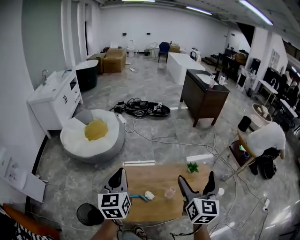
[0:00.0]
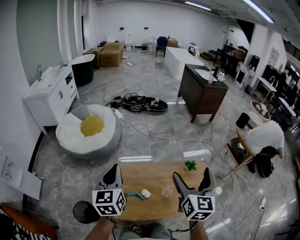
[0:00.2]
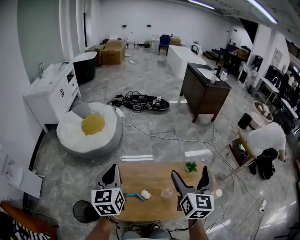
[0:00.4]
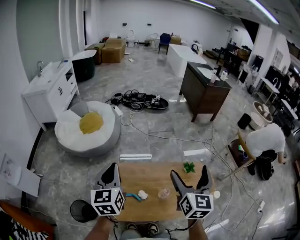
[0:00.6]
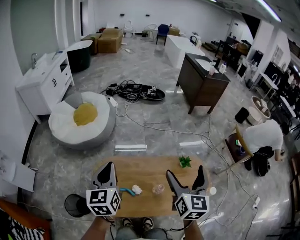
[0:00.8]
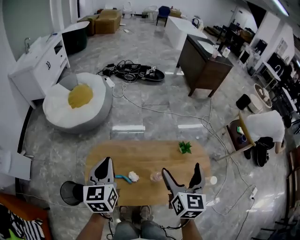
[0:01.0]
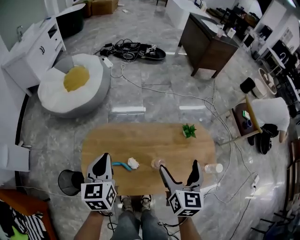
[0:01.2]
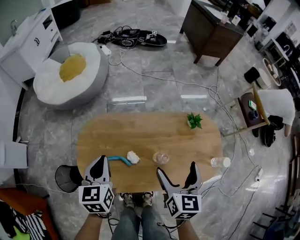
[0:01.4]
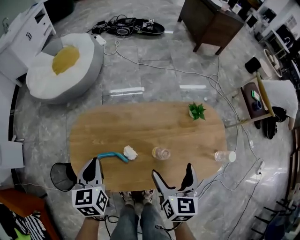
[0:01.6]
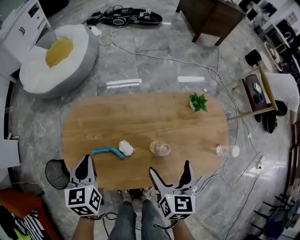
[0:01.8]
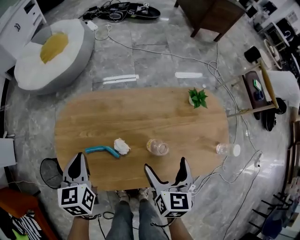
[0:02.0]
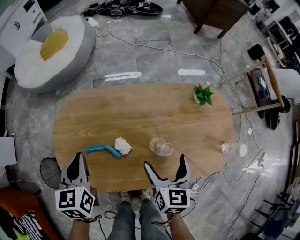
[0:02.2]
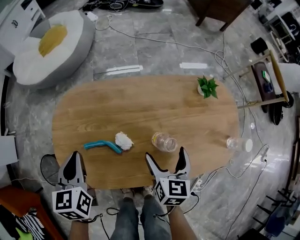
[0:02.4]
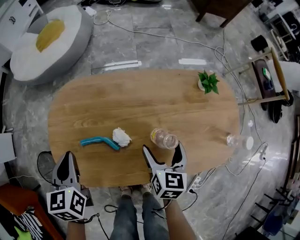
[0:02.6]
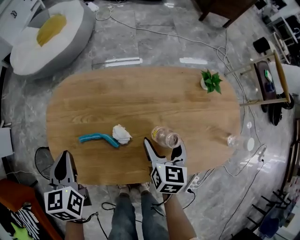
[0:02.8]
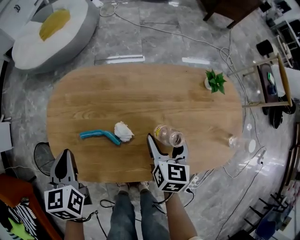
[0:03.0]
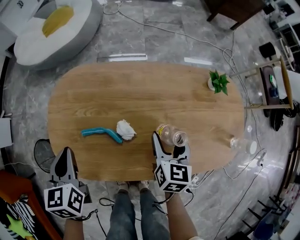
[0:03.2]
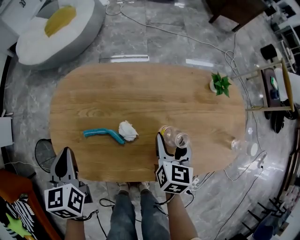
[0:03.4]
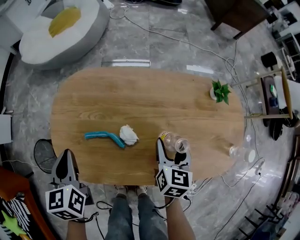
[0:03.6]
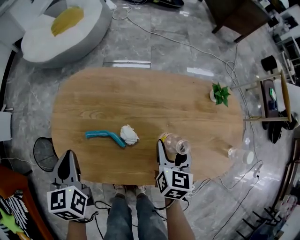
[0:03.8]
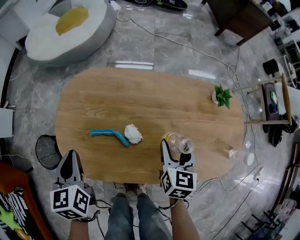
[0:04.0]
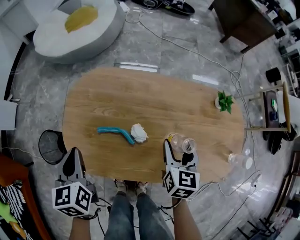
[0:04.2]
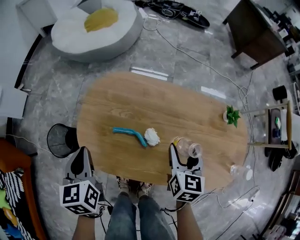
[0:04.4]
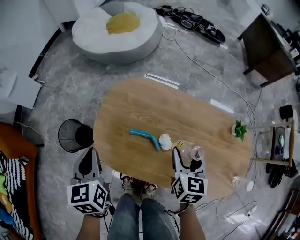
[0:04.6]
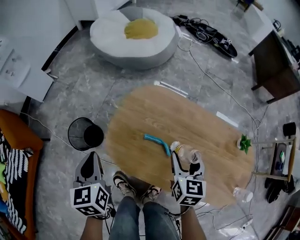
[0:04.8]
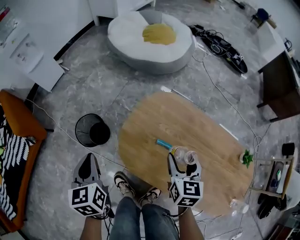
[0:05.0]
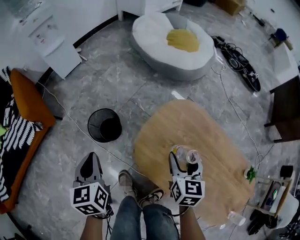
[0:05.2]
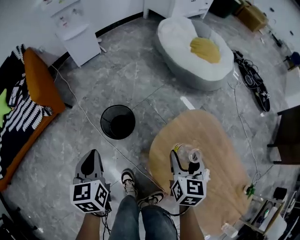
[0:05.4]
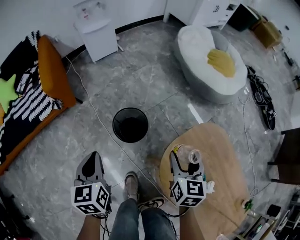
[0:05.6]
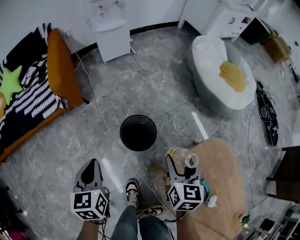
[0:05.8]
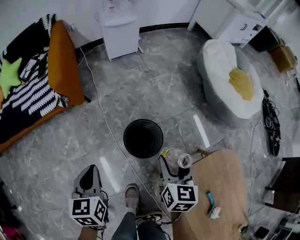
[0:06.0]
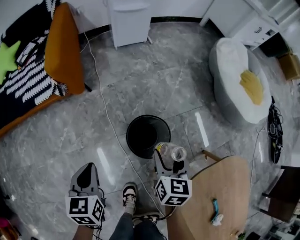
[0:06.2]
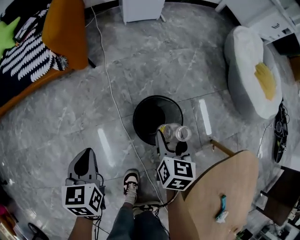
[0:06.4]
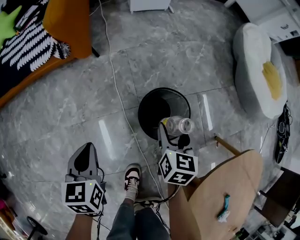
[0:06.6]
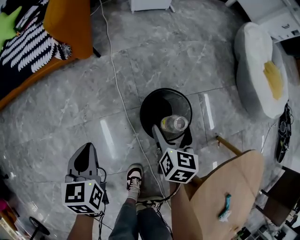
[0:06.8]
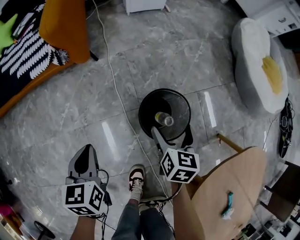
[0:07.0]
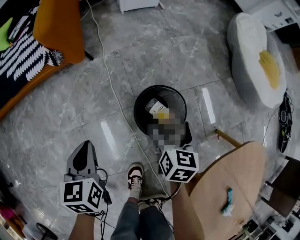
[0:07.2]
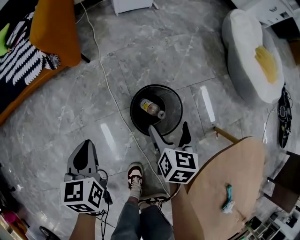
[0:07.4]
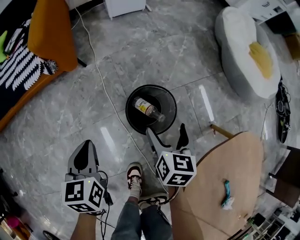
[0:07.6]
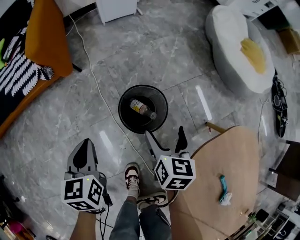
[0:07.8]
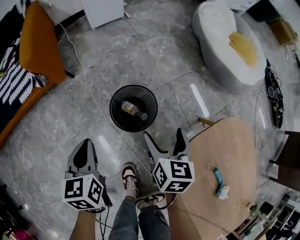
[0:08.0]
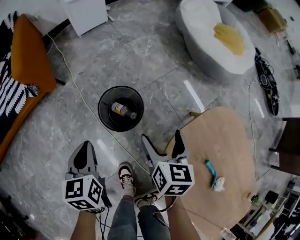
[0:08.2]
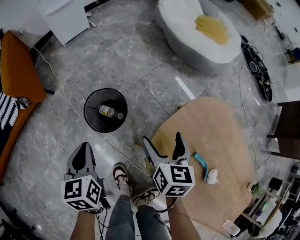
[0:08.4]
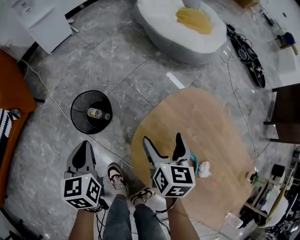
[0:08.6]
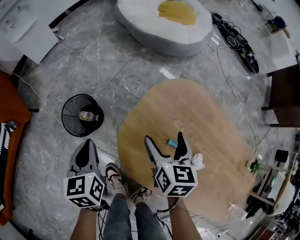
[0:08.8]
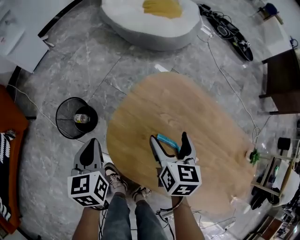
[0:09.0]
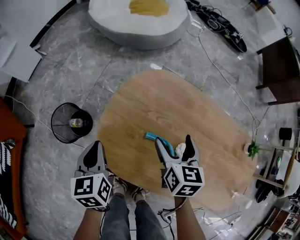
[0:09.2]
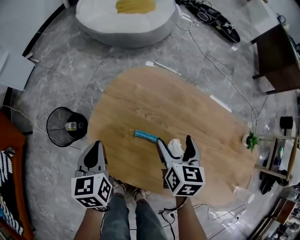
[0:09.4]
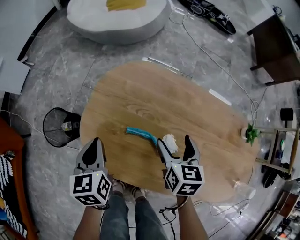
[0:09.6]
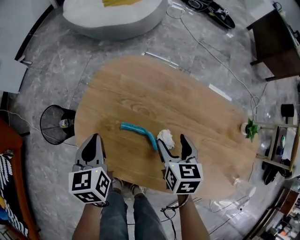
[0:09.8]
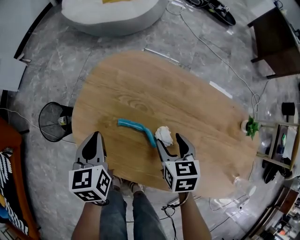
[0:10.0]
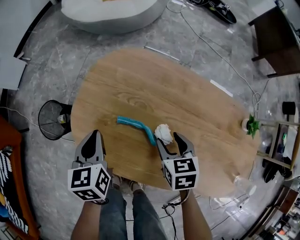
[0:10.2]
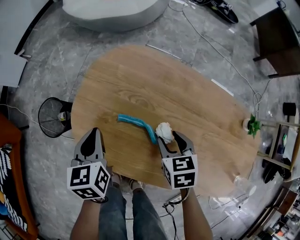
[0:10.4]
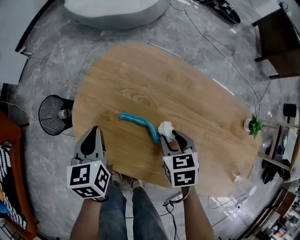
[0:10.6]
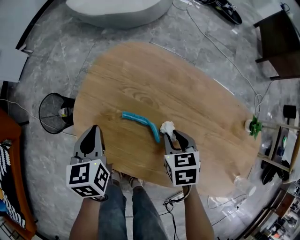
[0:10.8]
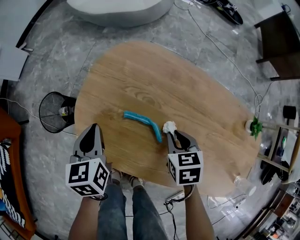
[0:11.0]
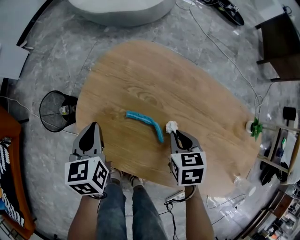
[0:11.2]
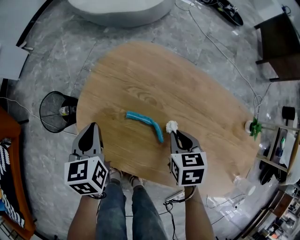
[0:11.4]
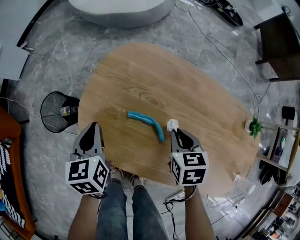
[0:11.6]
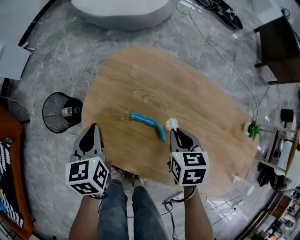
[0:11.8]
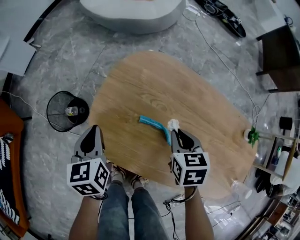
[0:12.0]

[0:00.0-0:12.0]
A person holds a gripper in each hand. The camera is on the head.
0:00.0 to 0:01.6: Both grippers move downward, about 35 cm. The left gripper swivels approximately 30 degrees; the right gripper changes its angle by about 30 degrees.
0:01.6 to 0:03.0: The left gripper travels downward and to the left by about 10 cm. Meanwhile the right gripper is displaced downward by roughly 20 cm.
0:03.0 to 0:04.4: The left gripper shifts by some 10 cm. Meanwhile the right gripper is displaced upward by some 5 cm.
0:04.4 to 0:06.0: Both grippers are carried roughly 50 cm. The left gripper swivels some 50 degrees. The right gripper changes its angle by approximately 60 degrees.
0:06.0 to 0:07.6: Both grippers move downward, some 15 cm. The right gripper opens up.
0:07.6 to 0:09.0: The right gripper changes place by some 40 cm, and swivels some 30 degrees, while the left gripper moves about 35 cm, and swivels roughly 40 degrees.
0:09.0 to 0:10.4: The left gripper heads to the right, covering some 15 cm, while the right gripper is displaced to the right, backward and downward by about 20 cm, rotates some 20 degrees, and closes up.
0:10.4 to 0:12.0: The right gripper ends up approximately 5 cm from where it was; the left gripper is displaced to the left by some 5 cm.

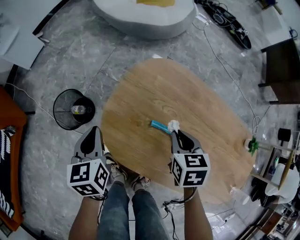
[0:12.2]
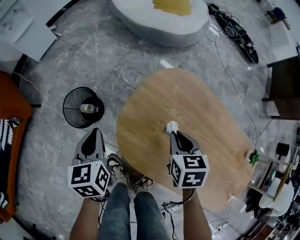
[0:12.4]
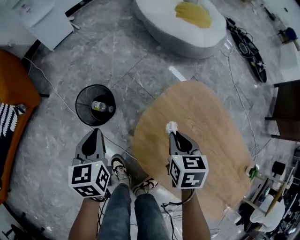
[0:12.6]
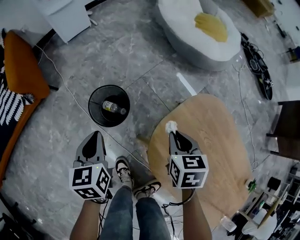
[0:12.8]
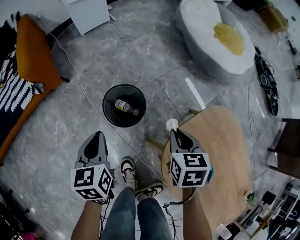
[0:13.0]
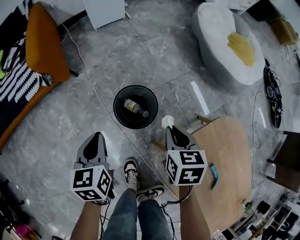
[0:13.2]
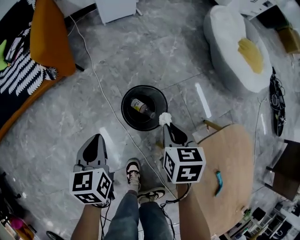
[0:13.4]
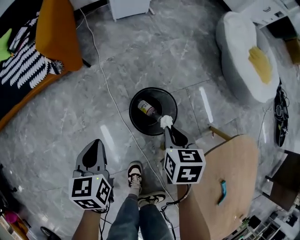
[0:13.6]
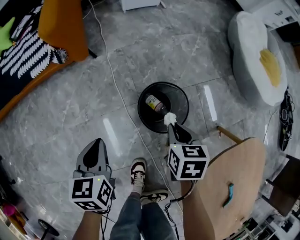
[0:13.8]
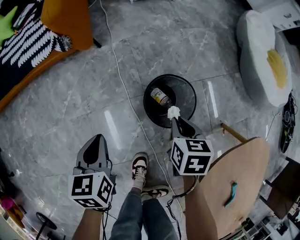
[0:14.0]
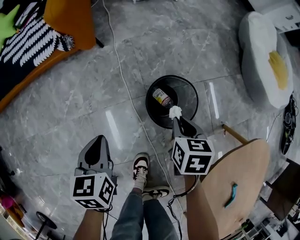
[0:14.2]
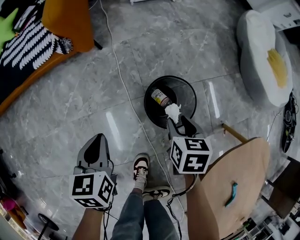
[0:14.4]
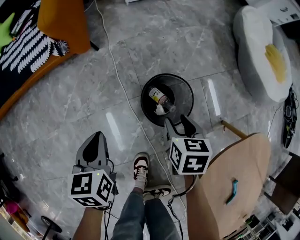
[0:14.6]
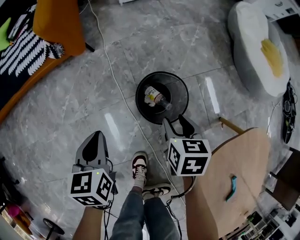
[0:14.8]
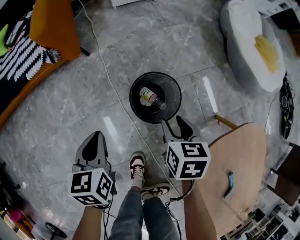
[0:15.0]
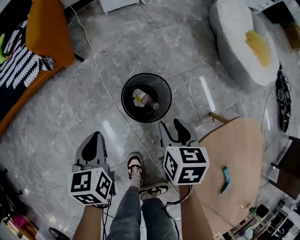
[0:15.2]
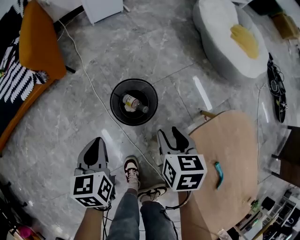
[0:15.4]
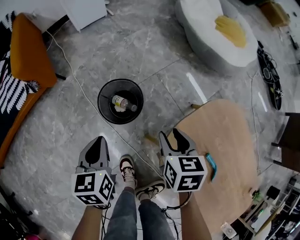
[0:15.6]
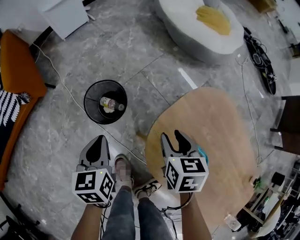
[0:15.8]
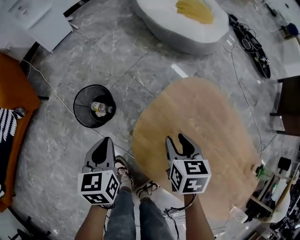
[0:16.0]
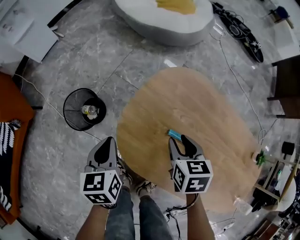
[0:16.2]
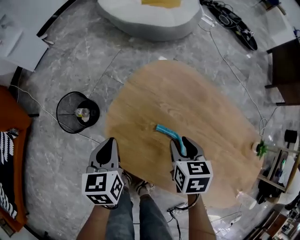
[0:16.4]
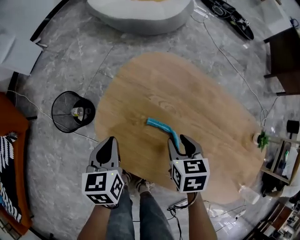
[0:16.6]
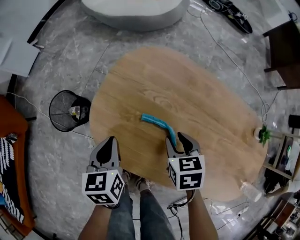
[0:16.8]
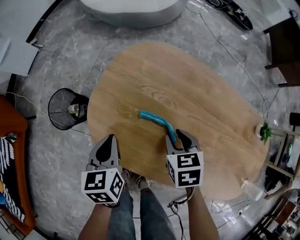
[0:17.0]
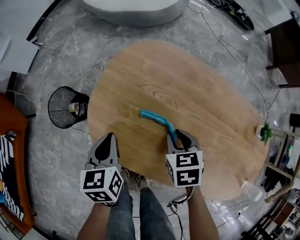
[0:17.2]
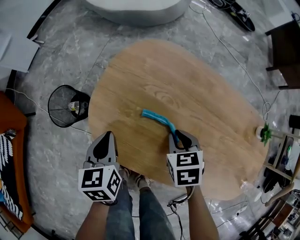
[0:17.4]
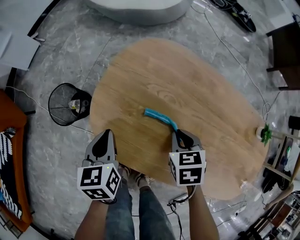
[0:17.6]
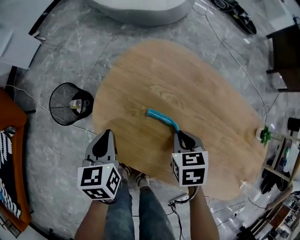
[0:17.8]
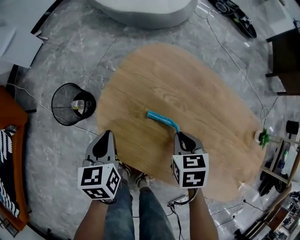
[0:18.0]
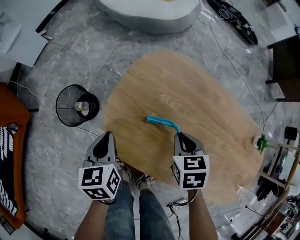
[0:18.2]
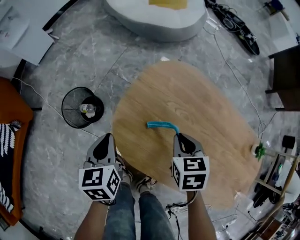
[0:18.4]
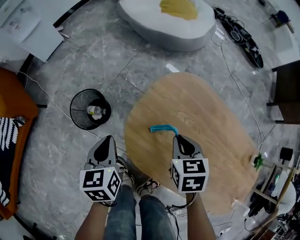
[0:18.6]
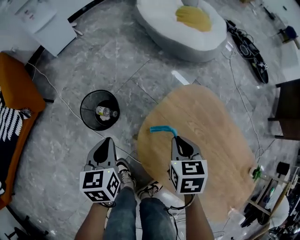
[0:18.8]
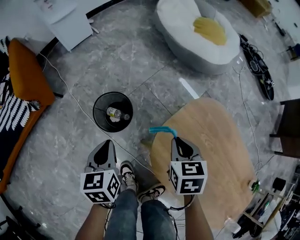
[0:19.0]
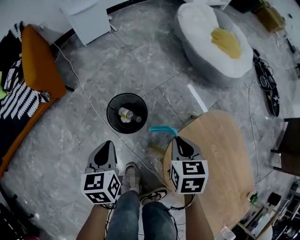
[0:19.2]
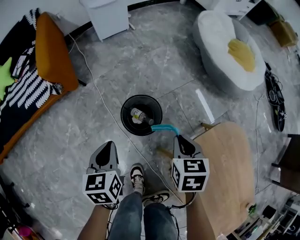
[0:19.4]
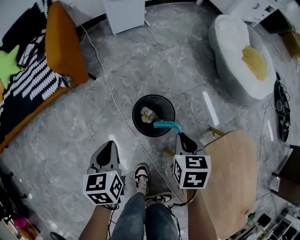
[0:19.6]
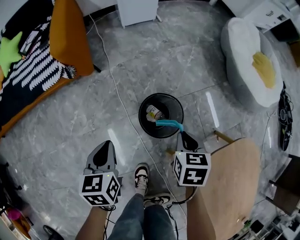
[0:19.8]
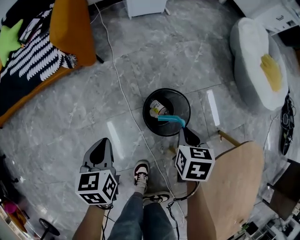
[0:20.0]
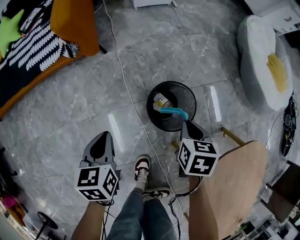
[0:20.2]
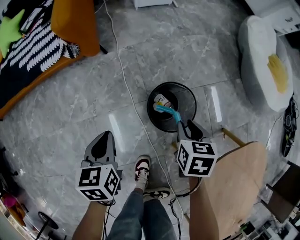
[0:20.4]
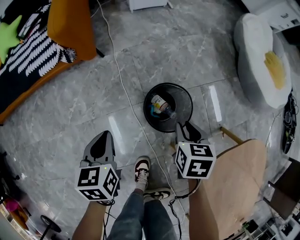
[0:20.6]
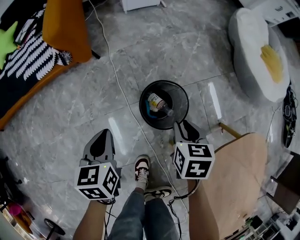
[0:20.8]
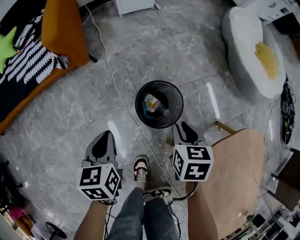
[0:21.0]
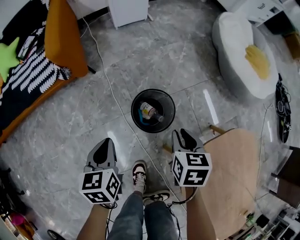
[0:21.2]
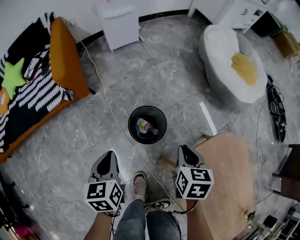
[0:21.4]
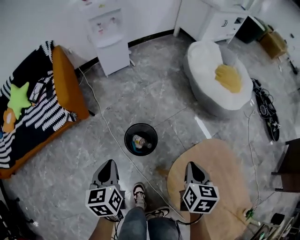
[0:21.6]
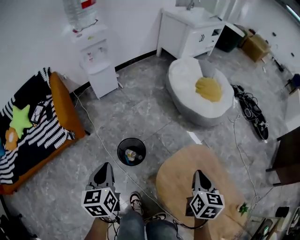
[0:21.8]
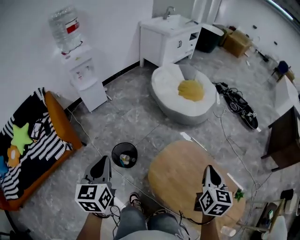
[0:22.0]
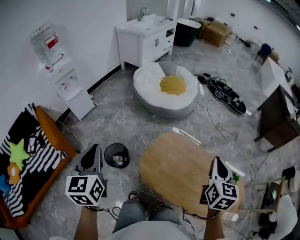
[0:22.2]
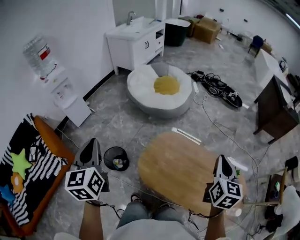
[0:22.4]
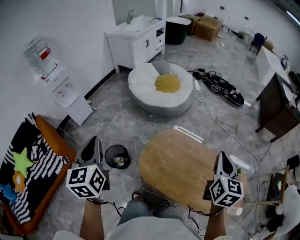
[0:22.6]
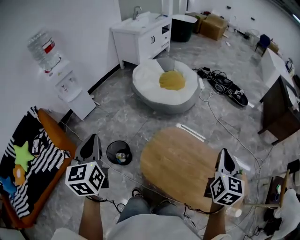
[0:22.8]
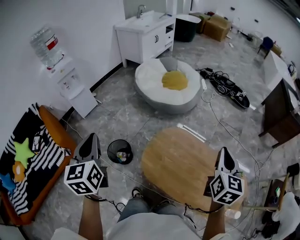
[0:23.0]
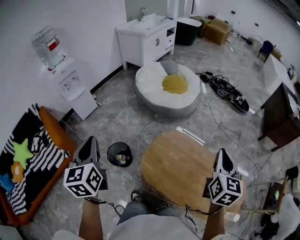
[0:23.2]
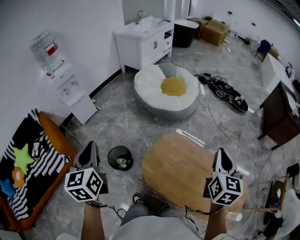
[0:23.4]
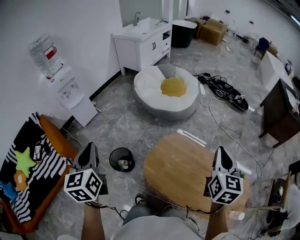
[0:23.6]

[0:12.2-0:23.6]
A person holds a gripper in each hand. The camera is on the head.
0:12.2 to 0:13.6: The left gripper changes place by roughly 40 cm, and swivels approximately 40 degrees. Meanwhile the right gripper changes place by some 50 cm, and changes its angle by some 40 degrees.
0:15.0 to 0:16.4: The right gripper shifts by about 50 cm, and swivels roughly 40 degrees; the left gripper changes place by approximately 40 cm, and swivels about 40 degrees.
0:16.4 to 0:17.8: The right gripper changes place by approximately 5 cm.
0:17.8 to 0:19.4: The right gripper ends up approximately 40 cm from where it was, and changes its angle by some 30 degrees. The left gripper changes place by about 35 cm, and swivels approximately 30 degrees.
0:19.4 to 0:20.8: The left gripper shifts about 10 cm to the left and downward, while the right gripper heads downward, to the left and forward, covering approximately 15 cm.
0:20.8 to 0:22.2: The two grippers go some 50 cm upward. The right gripper angles its fingers upward, by some 40 degrees. The left gripper tilts its fingers roughly 30 degrees upward.
